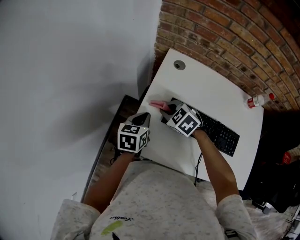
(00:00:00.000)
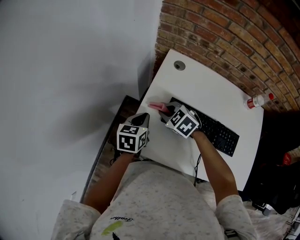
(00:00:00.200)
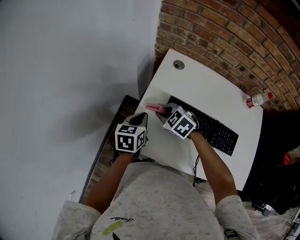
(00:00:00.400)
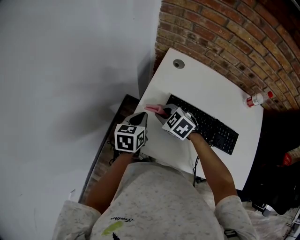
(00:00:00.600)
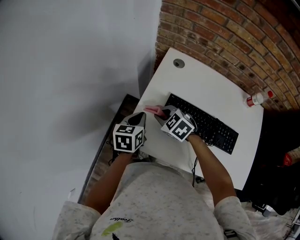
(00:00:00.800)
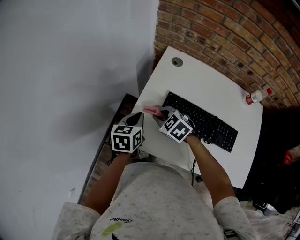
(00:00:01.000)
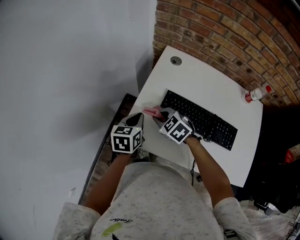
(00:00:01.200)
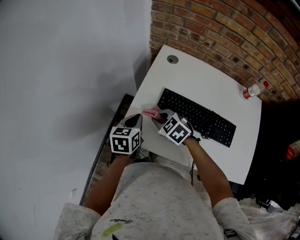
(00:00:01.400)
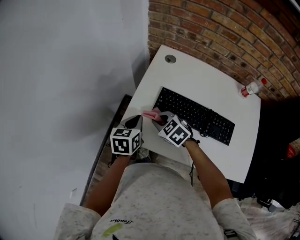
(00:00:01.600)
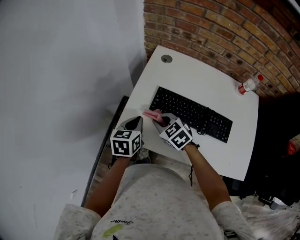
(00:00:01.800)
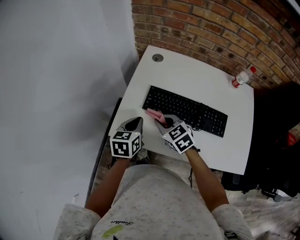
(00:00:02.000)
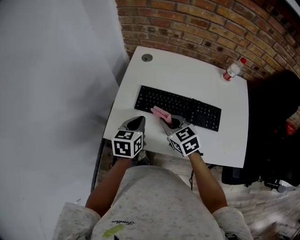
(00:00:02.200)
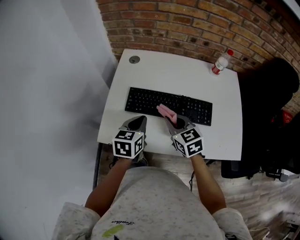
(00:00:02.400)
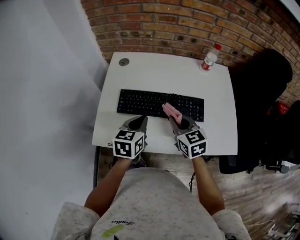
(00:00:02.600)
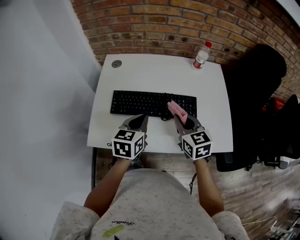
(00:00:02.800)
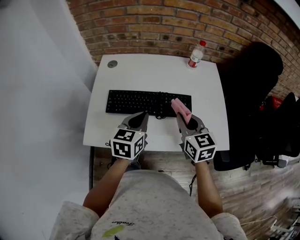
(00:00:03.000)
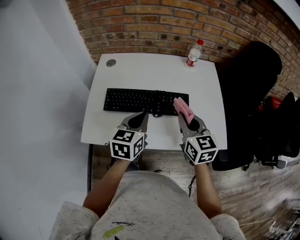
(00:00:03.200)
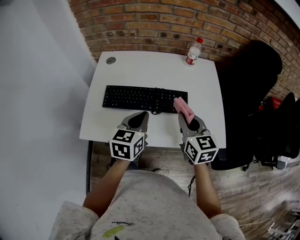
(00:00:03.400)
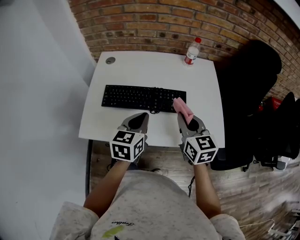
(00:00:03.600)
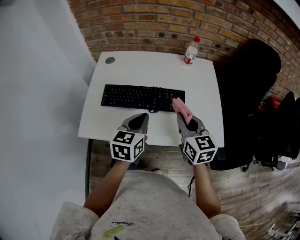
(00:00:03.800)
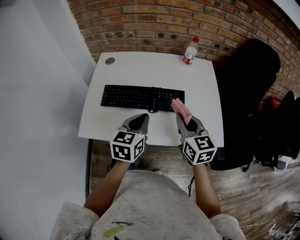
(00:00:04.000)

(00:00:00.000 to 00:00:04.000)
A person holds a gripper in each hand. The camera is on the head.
00:00:00.000 - 00:00:01.400: Both grippers move backward, approximately 10 cm.
00:00:01.400 - 00:00:02.600: The right gripper ends up about 30 cm from where it was, and changes its angle by approximately 50 degrees. Meanwhile the left gripper changes place by approximately 20 cm, and turns by approximately 20 degrees.
00:00:02.600 - 00:00:04.000: The left gripper moves to the right and backward, about 10 cm. The right gripper heads to the right, backward and upward, covering some 15 cm.

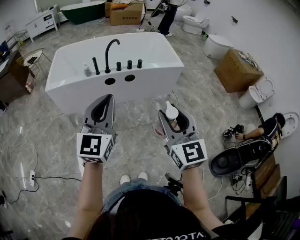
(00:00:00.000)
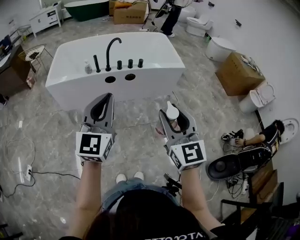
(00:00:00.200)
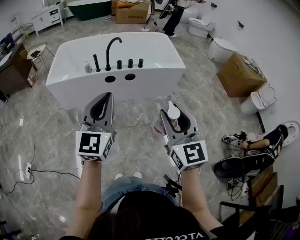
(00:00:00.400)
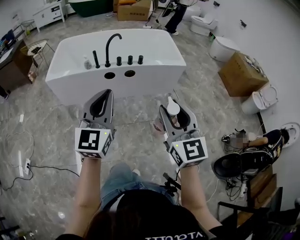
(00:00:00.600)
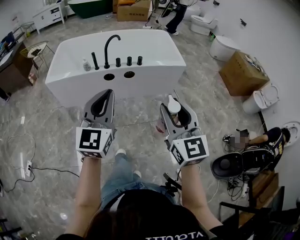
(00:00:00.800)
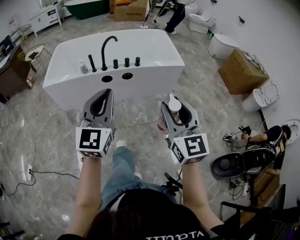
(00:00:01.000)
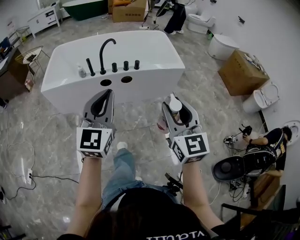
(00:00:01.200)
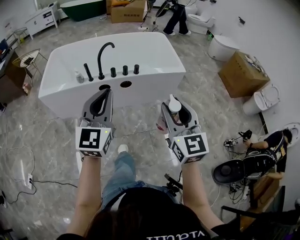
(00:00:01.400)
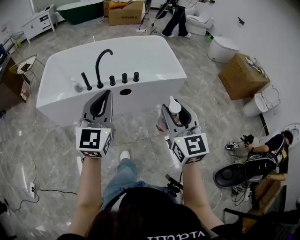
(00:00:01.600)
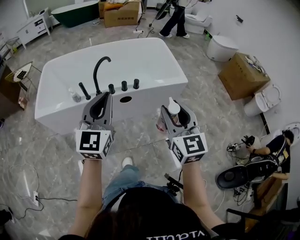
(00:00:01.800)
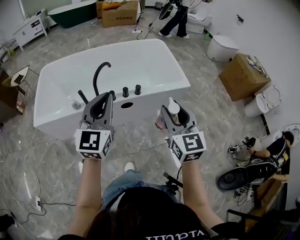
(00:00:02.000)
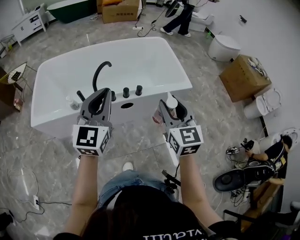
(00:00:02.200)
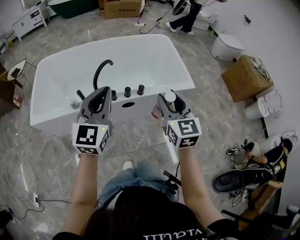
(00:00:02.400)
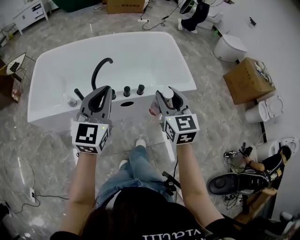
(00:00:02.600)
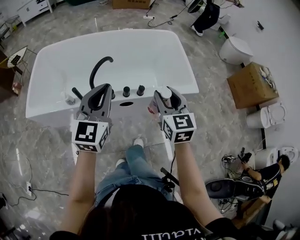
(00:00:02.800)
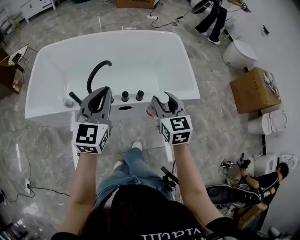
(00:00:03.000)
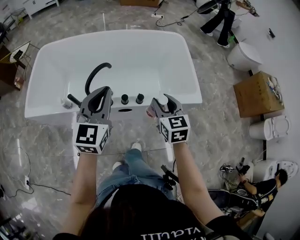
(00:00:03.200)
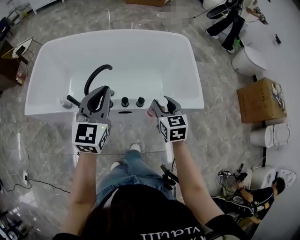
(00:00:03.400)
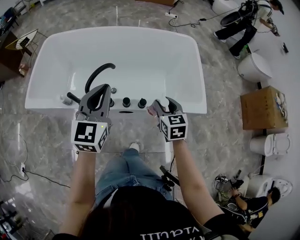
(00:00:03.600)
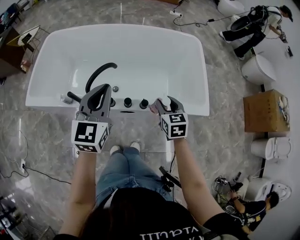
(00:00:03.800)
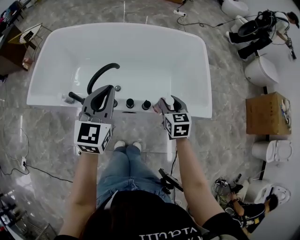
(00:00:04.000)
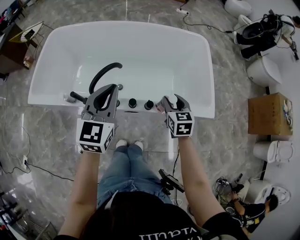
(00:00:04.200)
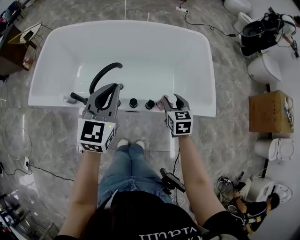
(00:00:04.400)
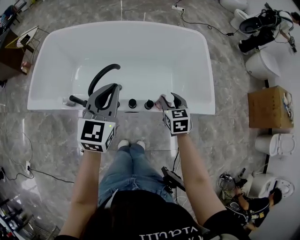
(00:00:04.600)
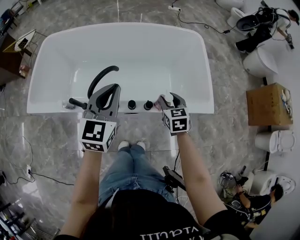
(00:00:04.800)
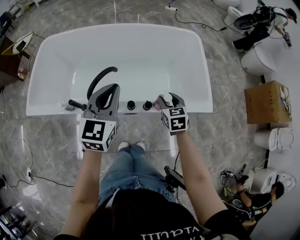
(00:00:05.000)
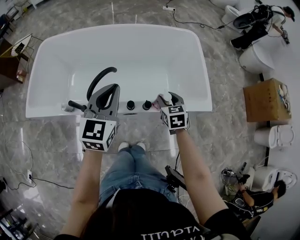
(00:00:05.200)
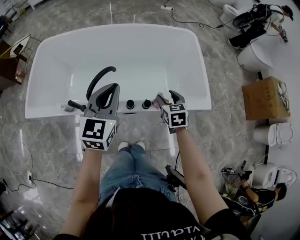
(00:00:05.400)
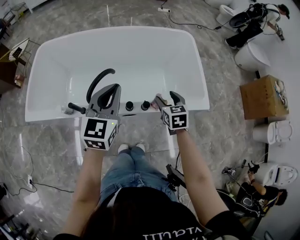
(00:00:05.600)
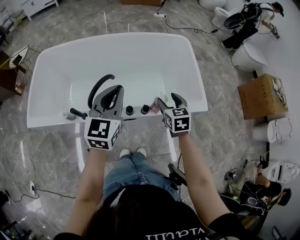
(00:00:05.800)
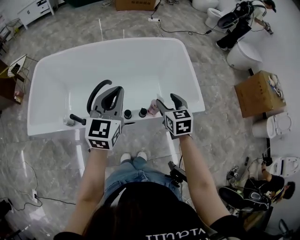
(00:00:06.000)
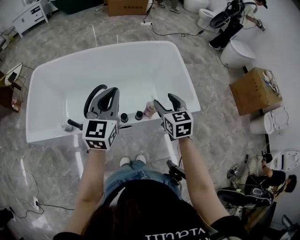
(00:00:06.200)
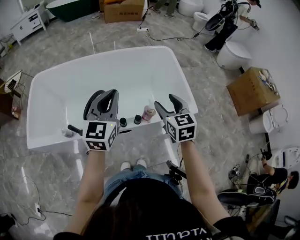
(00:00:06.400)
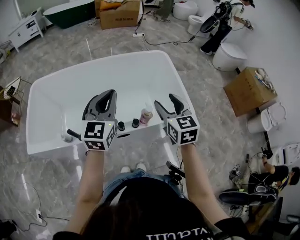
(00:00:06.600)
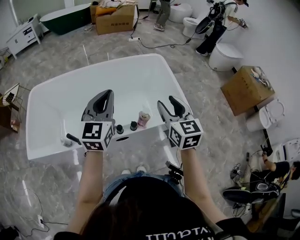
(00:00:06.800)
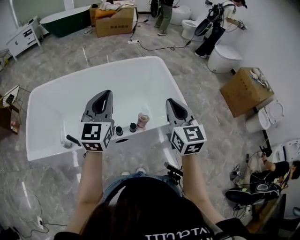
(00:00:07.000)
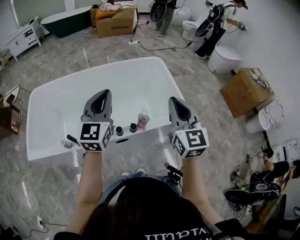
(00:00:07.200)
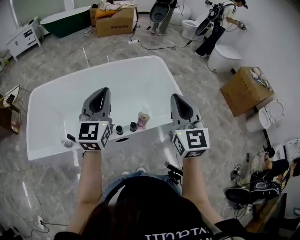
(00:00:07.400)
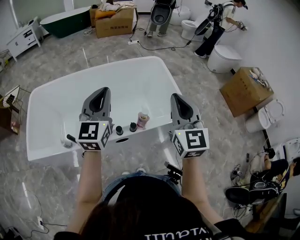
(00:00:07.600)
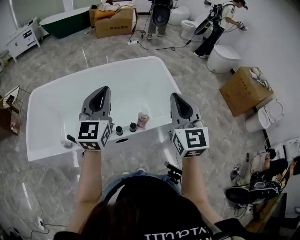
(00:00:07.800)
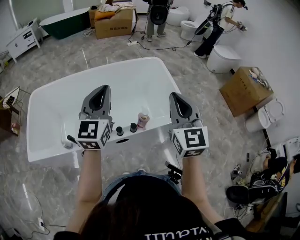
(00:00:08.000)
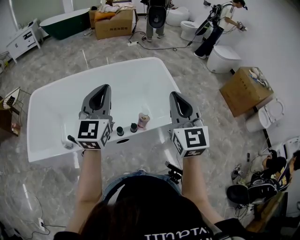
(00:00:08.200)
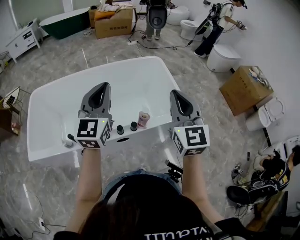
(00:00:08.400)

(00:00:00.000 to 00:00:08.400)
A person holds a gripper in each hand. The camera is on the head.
00:00:00.000 - 00:00:01.400: The right gripper is displaced forward and to the right by approximately 20 cm. The left gripper shifts some 15 cm forward.
00:00:01.400 - 00:00:02.800: Both grippers move forward, some 40 cm.
00:00:02.800 - 00:00:04.200: The left gripper travels forward and downward by approximately 15 cm; the right gripper moves forward and downward, roughly 25 cm, and changes its angle by some 20 degrees.
00:00:04.200 - 00:00:05.600: The right gripper opens.
00:00:05.600 - 00:00:07.000: The left gripper is displaced upward by approximately 10 cm; the right gripper moves upward, about 25 cm, tips its fingers upward by about 30 degrees, and closes its fingers.
00:00:07.000 - 00:00:08.400: The right gripper is displaced upward by roughly 5 cm.

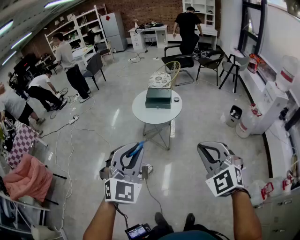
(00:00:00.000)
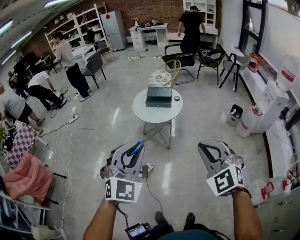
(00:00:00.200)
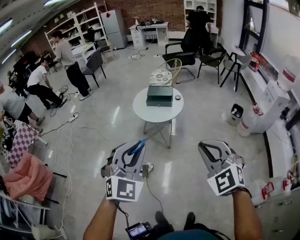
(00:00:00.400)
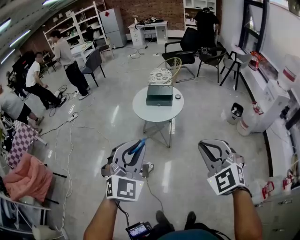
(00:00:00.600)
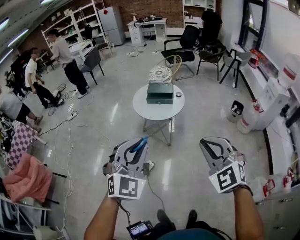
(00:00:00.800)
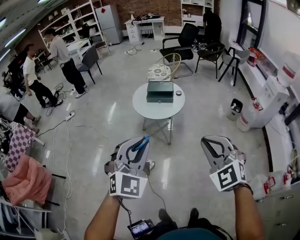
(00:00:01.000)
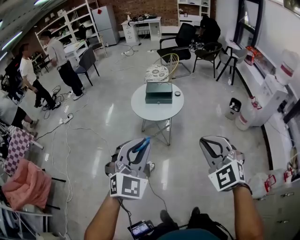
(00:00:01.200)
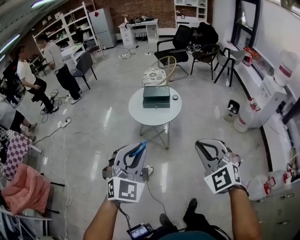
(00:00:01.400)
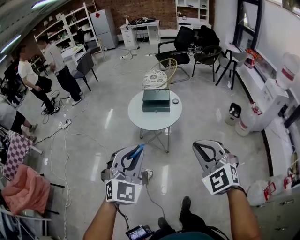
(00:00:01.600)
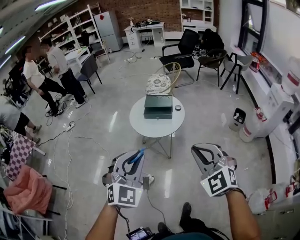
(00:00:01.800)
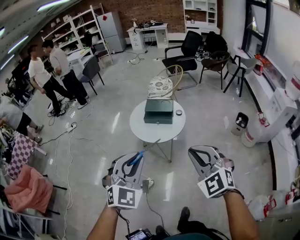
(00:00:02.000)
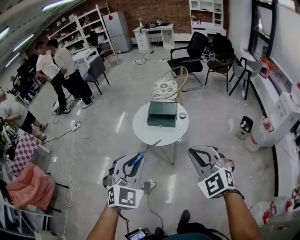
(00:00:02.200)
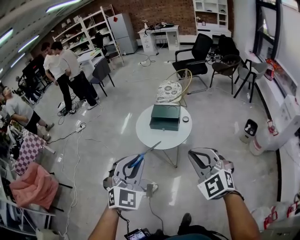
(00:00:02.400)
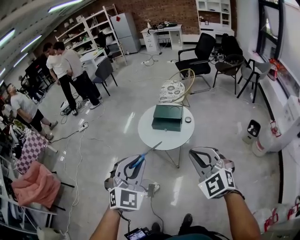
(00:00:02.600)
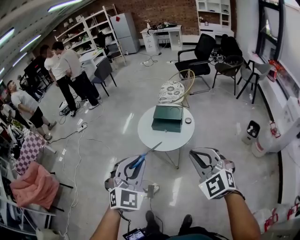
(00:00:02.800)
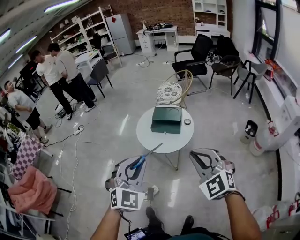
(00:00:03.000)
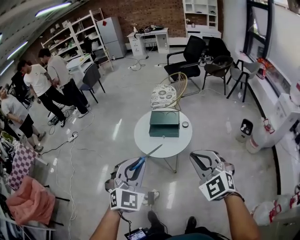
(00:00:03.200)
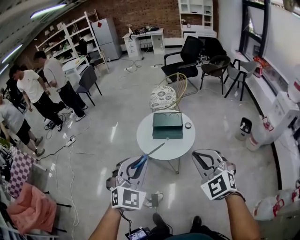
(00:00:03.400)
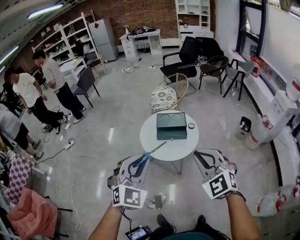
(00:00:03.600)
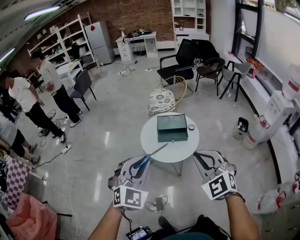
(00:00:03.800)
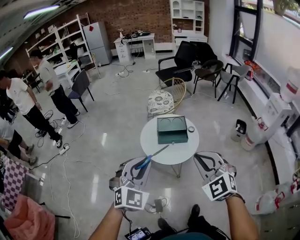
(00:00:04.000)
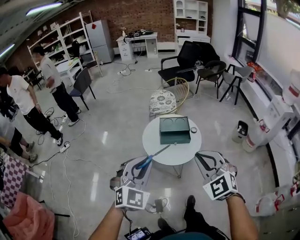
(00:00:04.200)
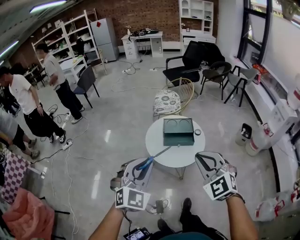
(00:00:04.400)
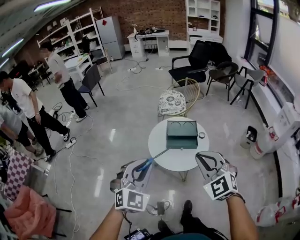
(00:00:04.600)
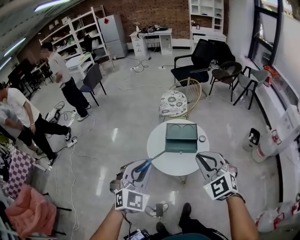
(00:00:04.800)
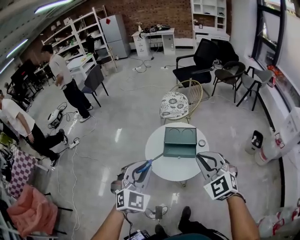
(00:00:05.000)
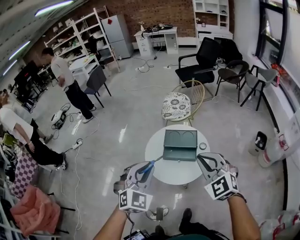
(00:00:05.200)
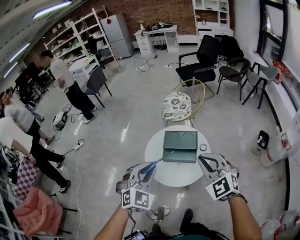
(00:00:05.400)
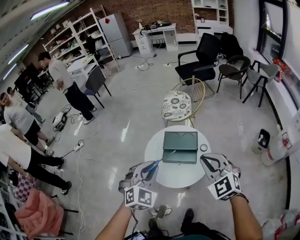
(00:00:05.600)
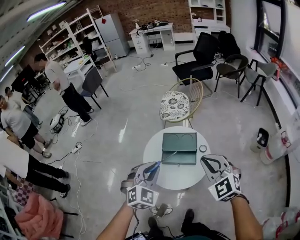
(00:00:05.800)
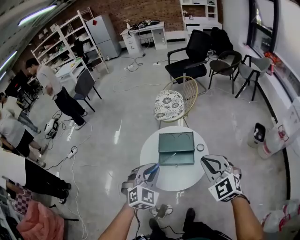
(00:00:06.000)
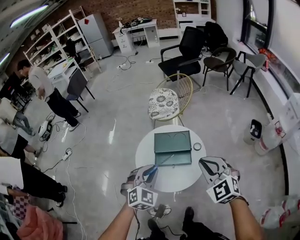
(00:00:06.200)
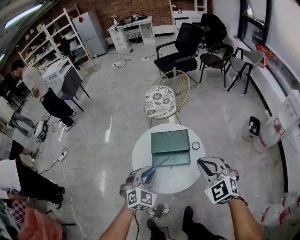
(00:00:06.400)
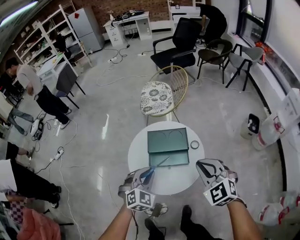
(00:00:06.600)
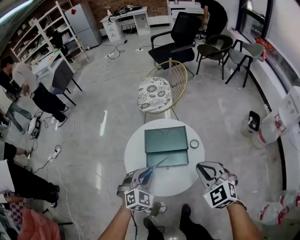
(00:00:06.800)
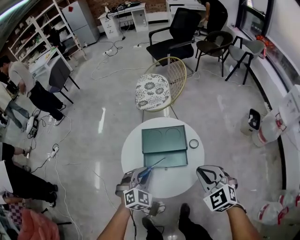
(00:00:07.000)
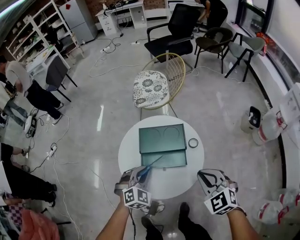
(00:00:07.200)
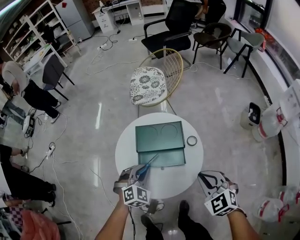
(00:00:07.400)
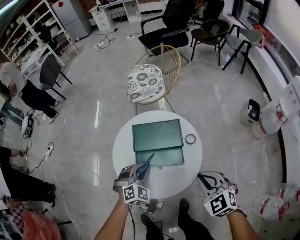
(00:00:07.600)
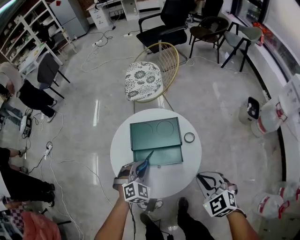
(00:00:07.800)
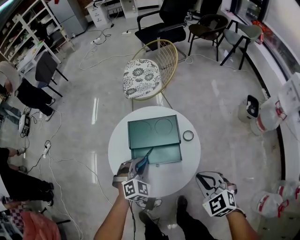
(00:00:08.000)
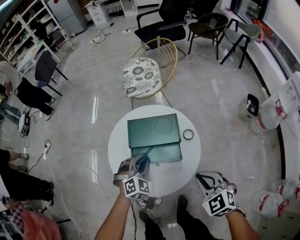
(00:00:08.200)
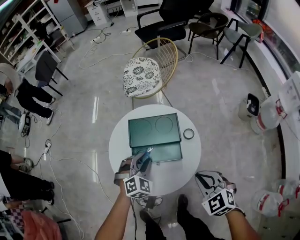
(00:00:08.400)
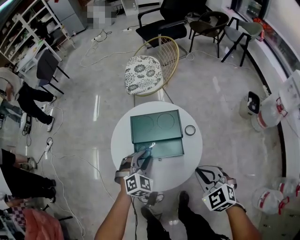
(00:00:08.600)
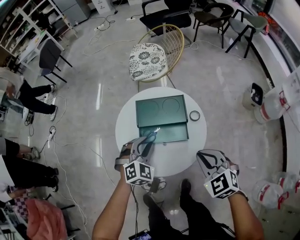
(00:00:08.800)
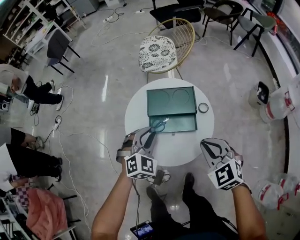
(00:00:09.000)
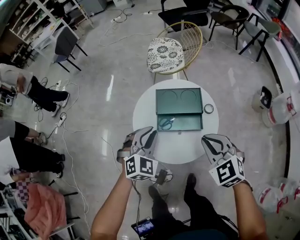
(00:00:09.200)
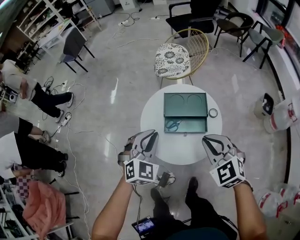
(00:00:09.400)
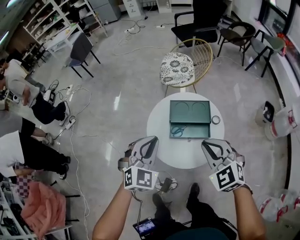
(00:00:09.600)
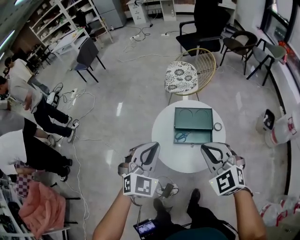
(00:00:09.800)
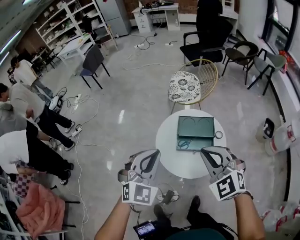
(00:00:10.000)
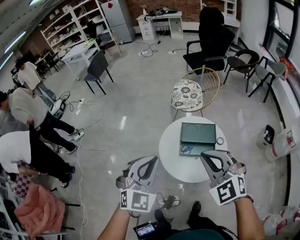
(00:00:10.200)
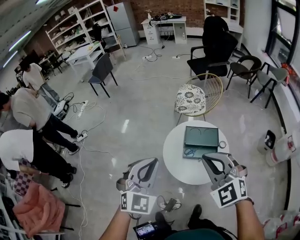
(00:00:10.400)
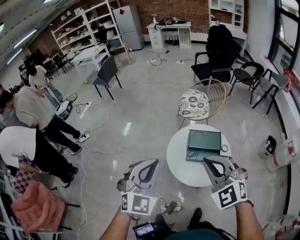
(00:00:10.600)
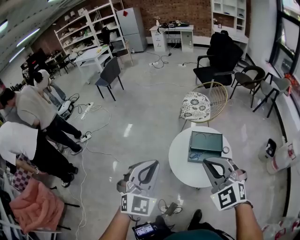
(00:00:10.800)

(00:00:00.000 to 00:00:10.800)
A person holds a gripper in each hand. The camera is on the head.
00:00:00.000 - 00:00:01.600: The grippers both shift forward by about 20 cm.
00:00:01.600 - 00:00:03.000: The left gripper heads forward and to the right, covering about 25 cm. The right gripper shifts approximately 25 cm forward.
00:00:03.000 - 00:00:04.600: Both grippers travel together to the left and forward, about 40 cm.
00:00:04.600 - 00:00:06.200: The two grippers go approximately 40 cm forward, to the right and downward.
00:00:06.200 - 00:00:07.800: The right gripper shifts some 30 cm downward. The left gripper goes approximately 40 cm downward and forward.
00:00:07.800 - 00:00:09.200: The right gripper heads to the left and upward, covering approximately 15 cm, while the left gripper shifts about 20 cm upward, to the left and backward.
00:00:09.200 - 00:00:10.800: Both grippers move upward, to the left and backward, approximately 50 cm. The left gripper changes its angle by approximately 20 degrees, while the right gripper swivels some 30 degrees.
